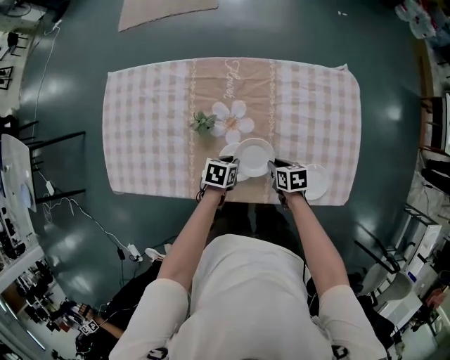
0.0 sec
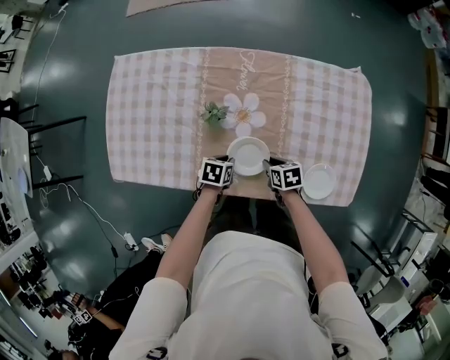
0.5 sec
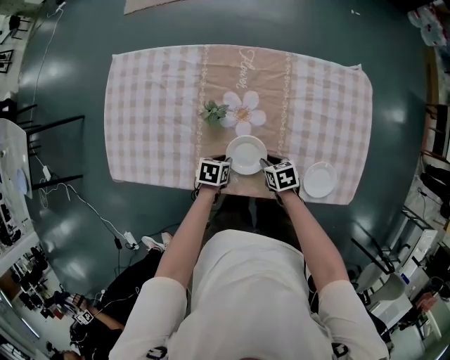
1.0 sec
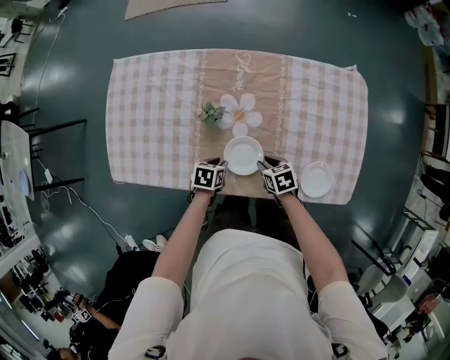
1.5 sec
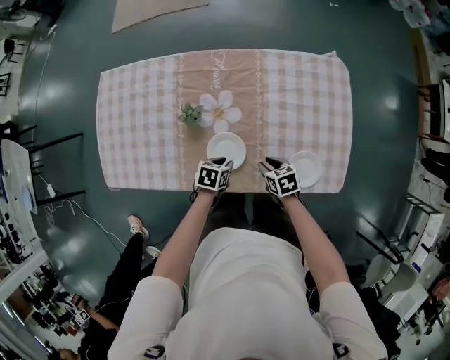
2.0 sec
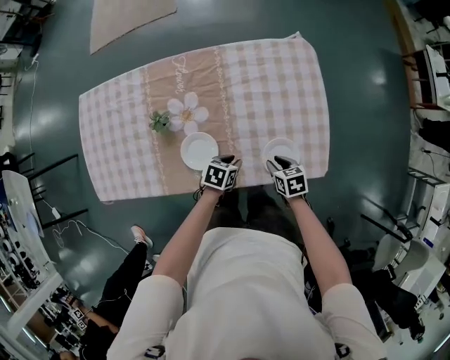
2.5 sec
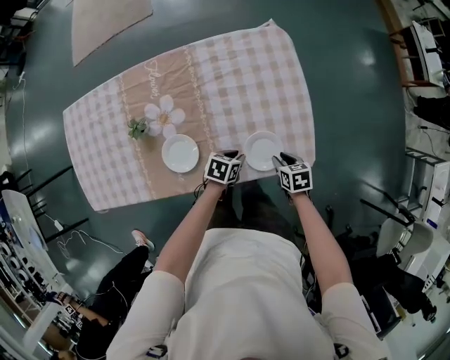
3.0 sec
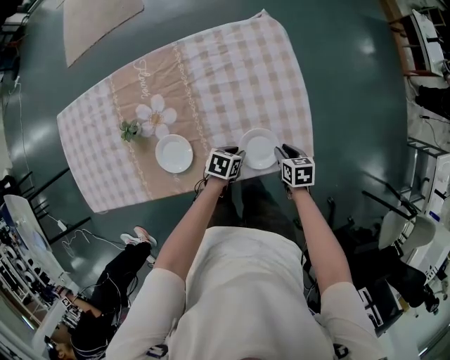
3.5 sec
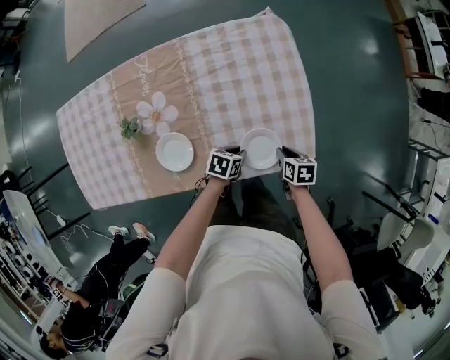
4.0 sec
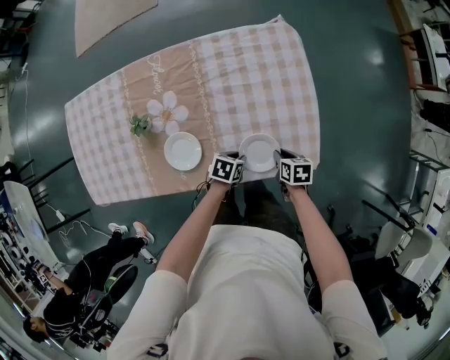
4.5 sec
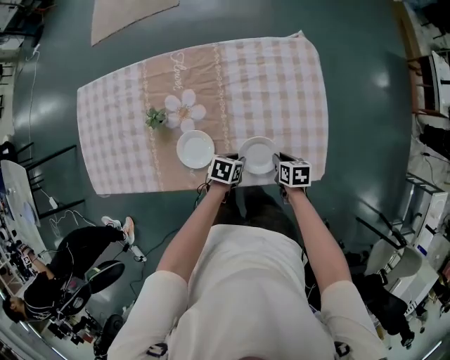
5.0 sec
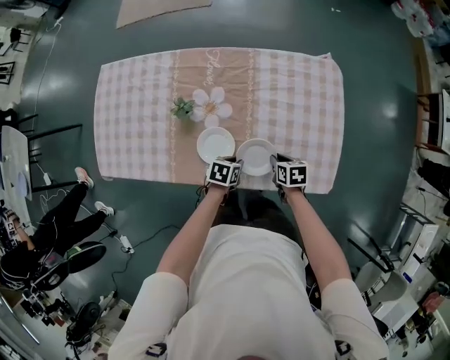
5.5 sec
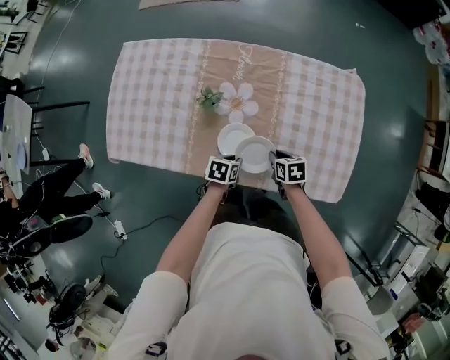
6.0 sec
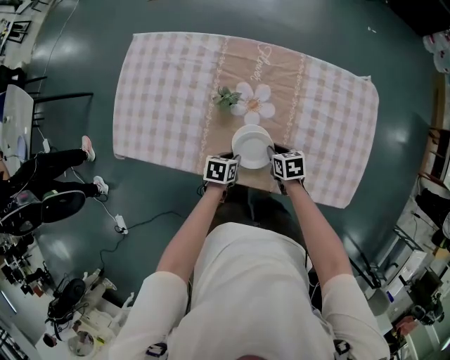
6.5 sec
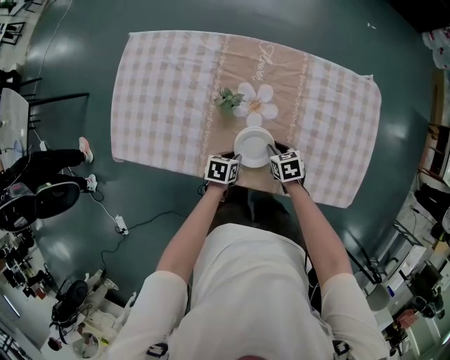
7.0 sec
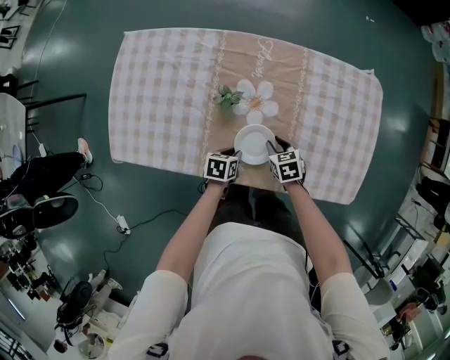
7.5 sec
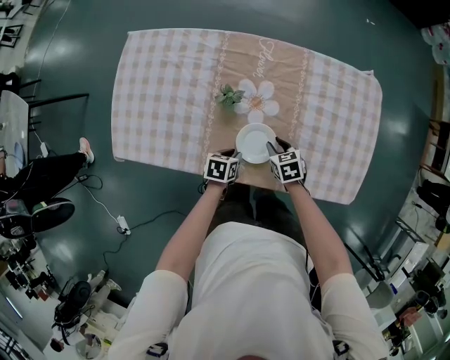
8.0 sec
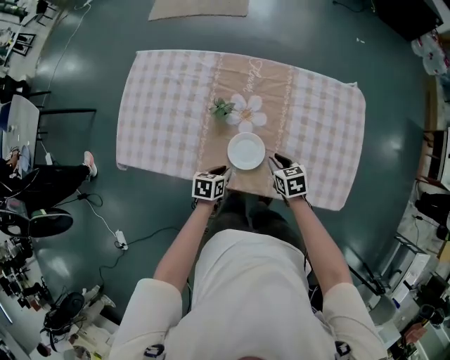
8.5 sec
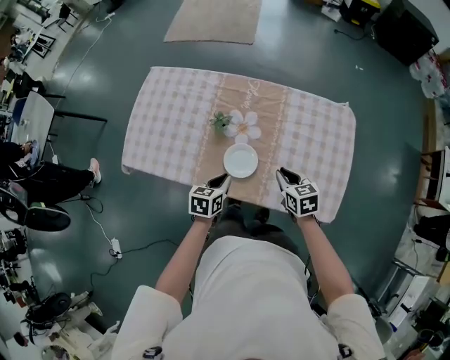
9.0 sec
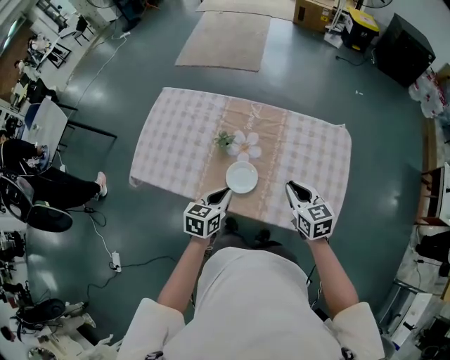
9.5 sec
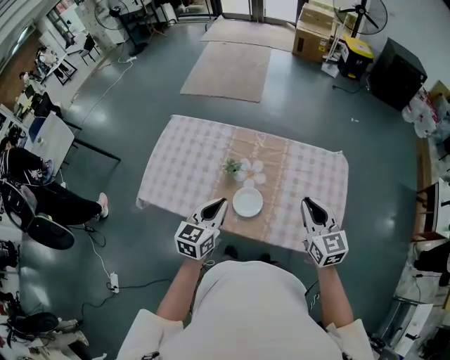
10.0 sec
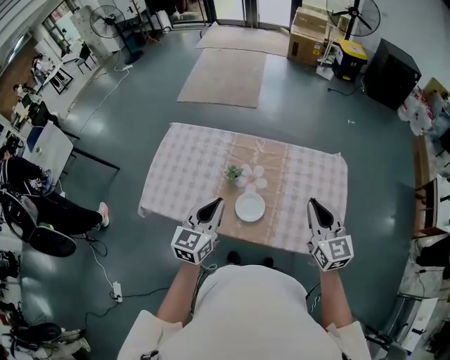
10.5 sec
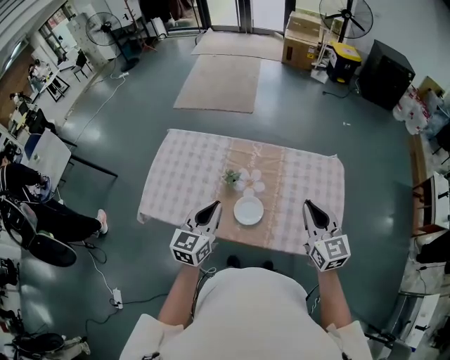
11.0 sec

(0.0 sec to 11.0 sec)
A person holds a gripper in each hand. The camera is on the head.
2.0 sec - 3.5 sec: The left gripper ends up roughly 25 cm from where it was; the right gripper ends up about 25 cm from where it was, and turns by roughly 30 degrees.
3.5 sec - 5.5 sec: The right gripper changes place by roughly 20 cm, while the left gripper ends up about 15 cm from where it was, and rotates some 20 degrees.
5.5 sec - 7.5 sec: Both grippers travel together to the left, roughly 15 cm. The right gripper turns by about 30 degrees.
7.5 sec - 9.0 sec: The right gripper goes some 20 cm upward and to the right. The left gripper is displaced upward by about 20 cm, and rotates about 20 degrees.
9.0 sec - 11.0 sec: The two grippers go some 25 cm upward. The left gripper points its fingers about 30 degrees further upward, while the right gripper points its fingers some 30 degrees further upward.

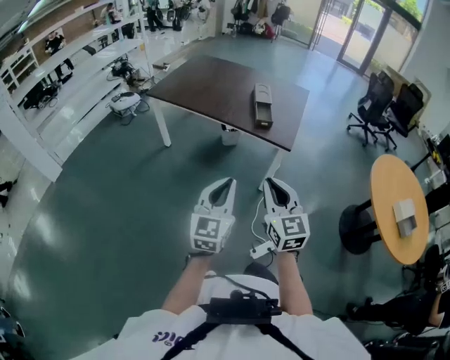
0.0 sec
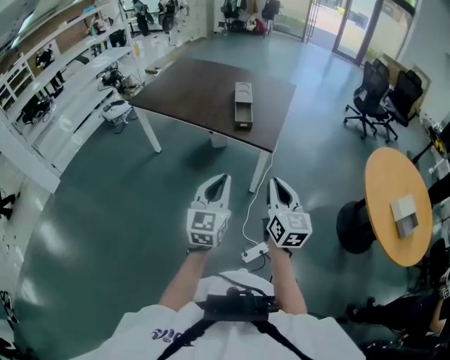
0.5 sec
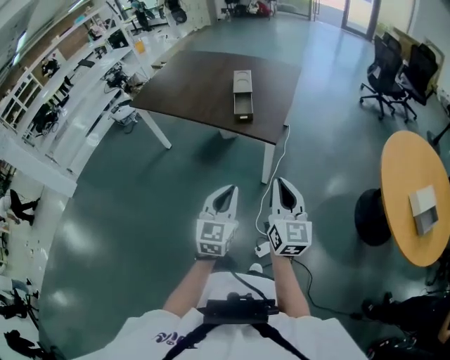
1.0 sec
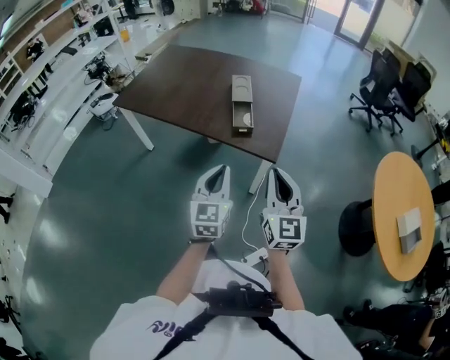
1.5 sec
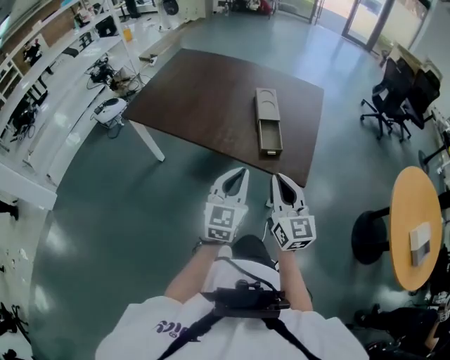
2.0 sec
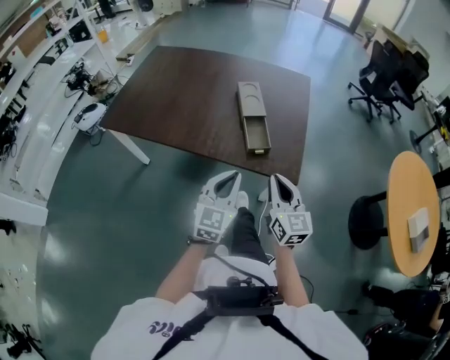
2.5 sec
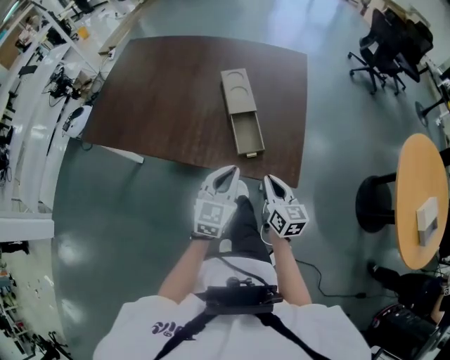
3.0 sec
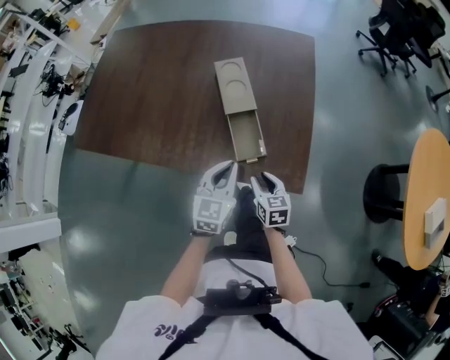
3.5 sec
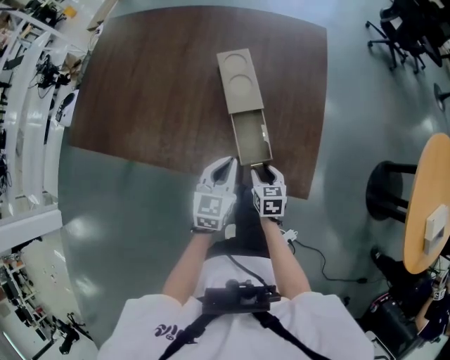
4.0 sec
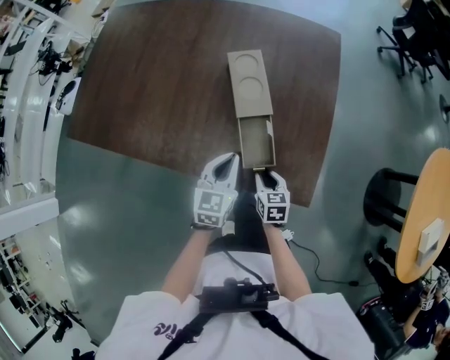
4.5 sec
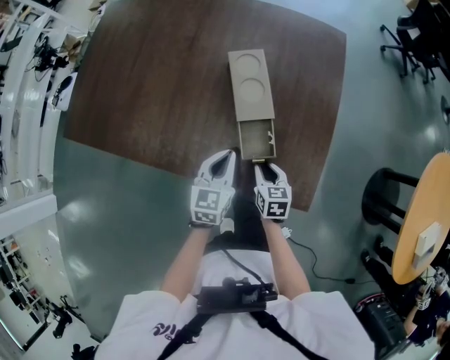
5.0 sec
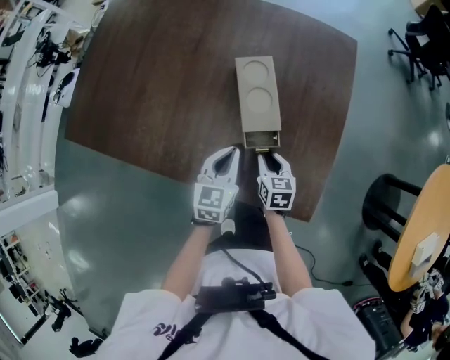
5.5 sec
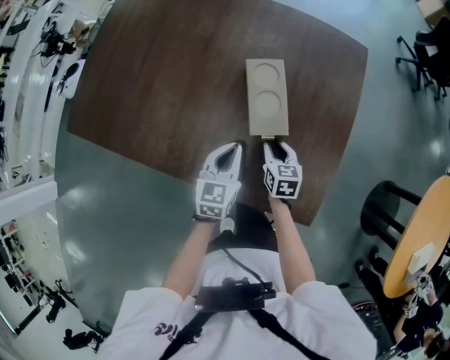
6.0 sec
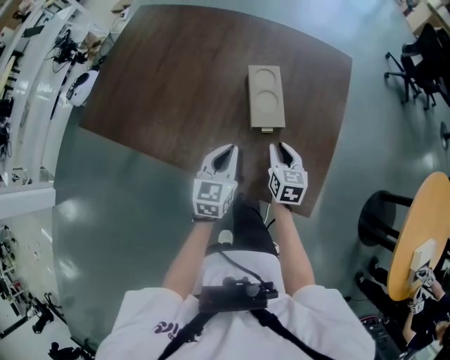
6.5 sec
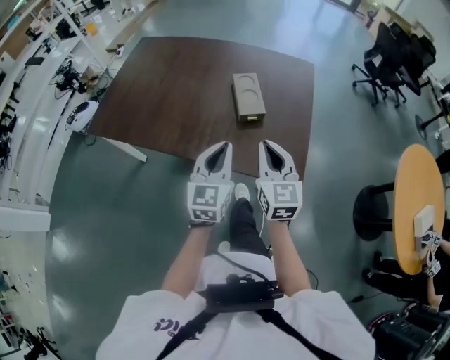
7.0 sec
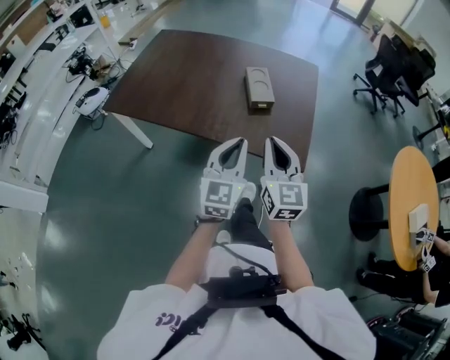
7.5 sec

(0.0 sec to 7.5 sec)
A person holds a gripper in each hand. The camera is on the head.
0.0 sec - 2.0 sec: Both grippers travel together forward, about 40 cm.
2.0 sec - 4.0 sec: The left gripper goes about 35 cm forward and downward, and changes its angle by approximately 20 degrees; the right gripper heads downward and forward, covering some 50 cm, tilts its fingers about 50 degrees downward, and opens up.
4.0 sec - 5.5 sec: Both grippers travel together forward, approximately 10 cm.
5.5 sec - 7.5 sec: The right gripper goes some 50 cm upward and backward, tilts its fingers about 40 degrees upward, and closes its fingers. The left gripper moves backward and upward, roughly 40 cm, and turns by about 30 degrees.

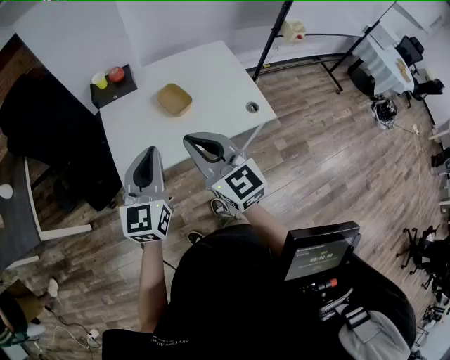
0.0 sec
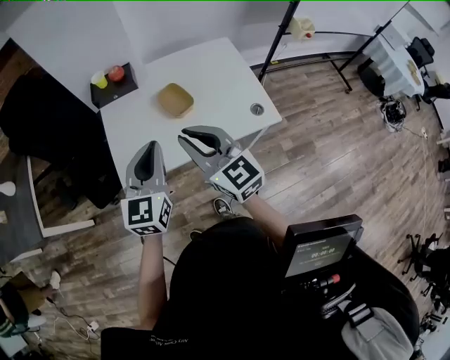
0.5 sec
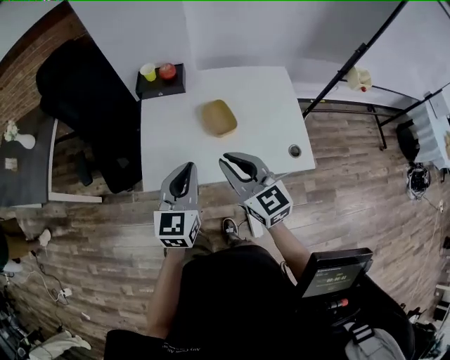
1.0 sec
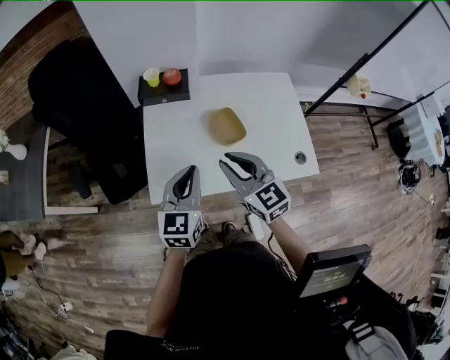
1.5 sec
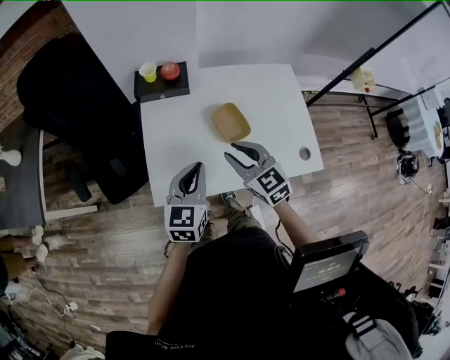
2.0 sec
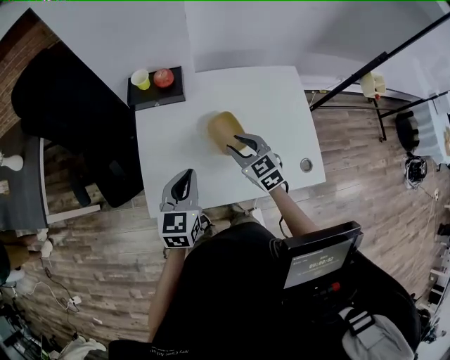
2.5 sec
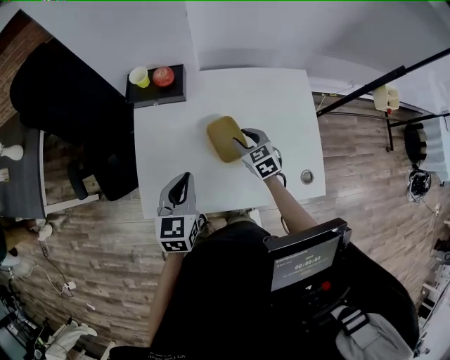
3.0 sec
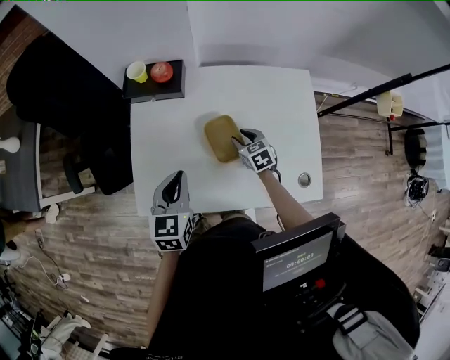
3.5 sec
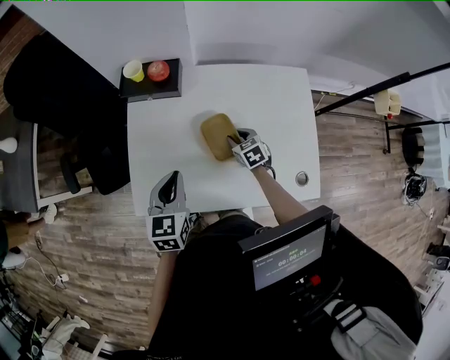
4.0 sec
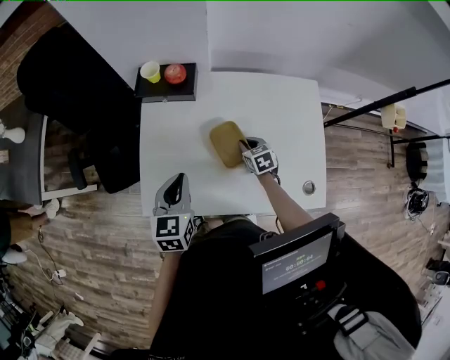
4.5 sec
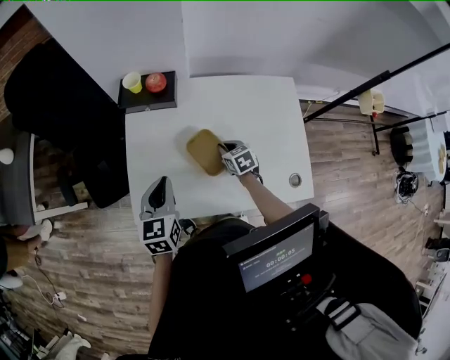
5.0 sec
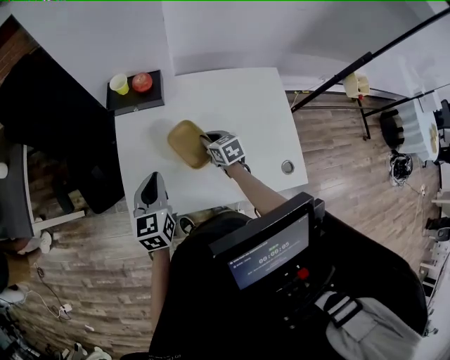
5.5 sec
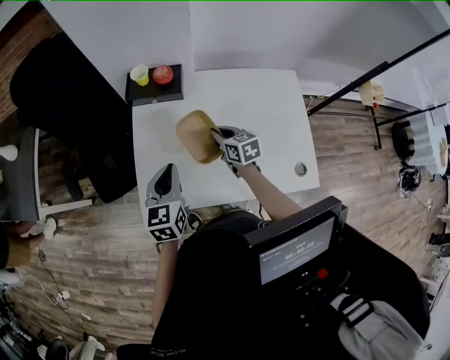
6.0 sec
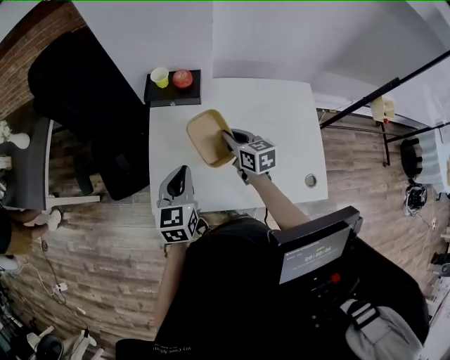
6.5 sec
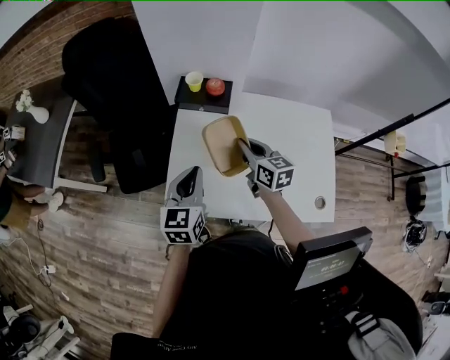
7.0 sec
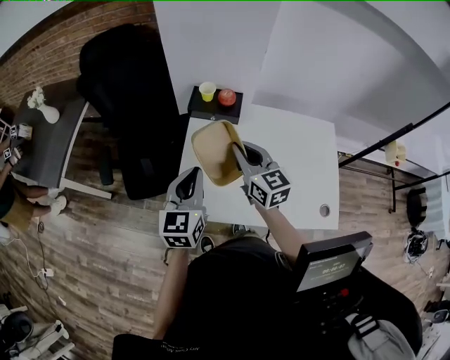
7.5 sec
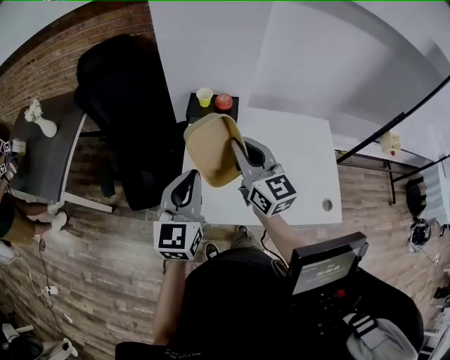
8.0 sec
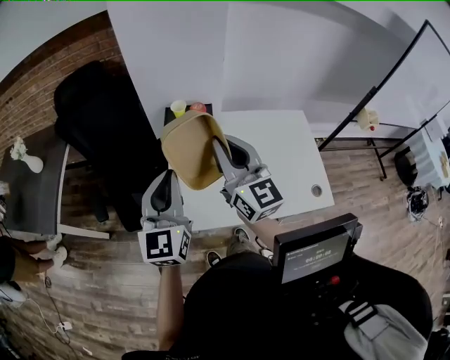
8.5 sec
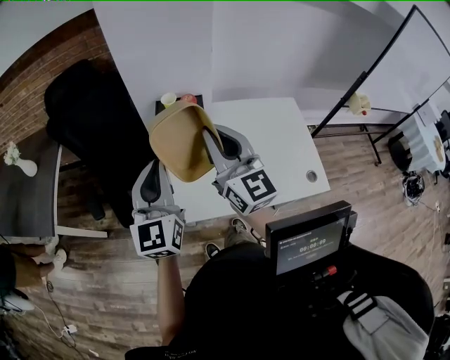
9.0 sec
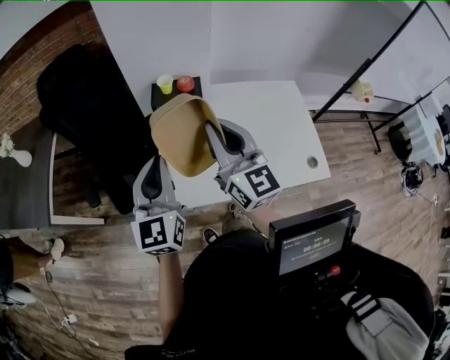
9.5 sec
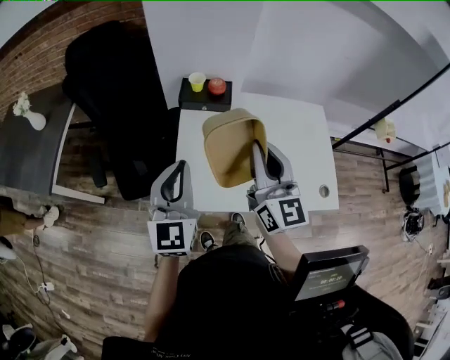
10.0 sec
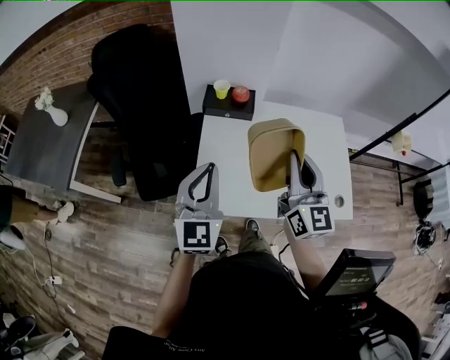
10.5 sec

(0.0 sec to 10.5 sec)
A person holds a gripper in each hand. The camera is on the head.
0.0 sec - 2.0 sec: Both grippers travel together forward and downward, about 25 cm. The right gripper rotates about 30 degrees, and opens.
2.0 sec - 4.0 sec: The left gripper goes some 10 cm forward and downward. The right gripper is displaced downward, forward and to the right by approximately 30 cm, and swivels some 30 degrees.
4.0 sec - 6.5 sec: The right gripper travels upward and to the left by some 20 cm, rotates some 30 degrees, and closes up. Meanwhile the left gripper shifts by approximately 5 cm.
6.5 sec - 8.5 sec: Both grippers move upward and to the left, about 25 cm. The right gripper tips its fingers upward by approximately 40 degrees, while the left gripper swivels approximately 30 degrees.
8.5 sec - 10.5 sec: The right gripper is displaced to the right by some 5 cm.
